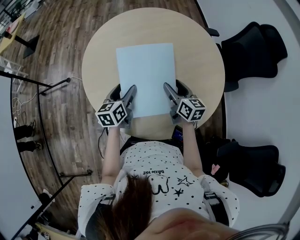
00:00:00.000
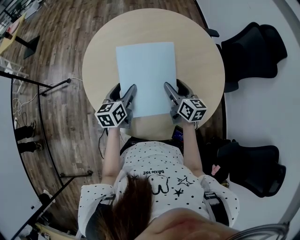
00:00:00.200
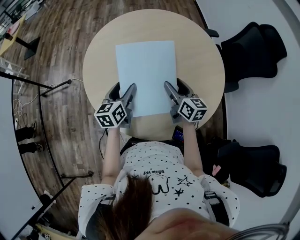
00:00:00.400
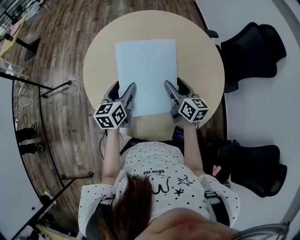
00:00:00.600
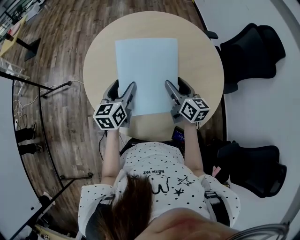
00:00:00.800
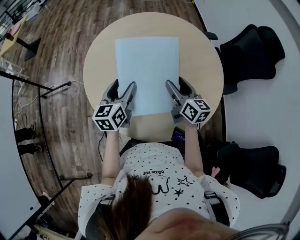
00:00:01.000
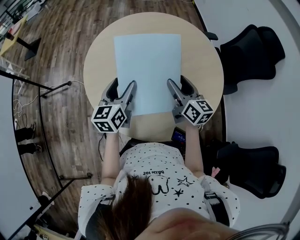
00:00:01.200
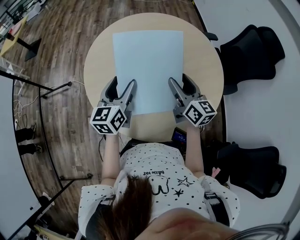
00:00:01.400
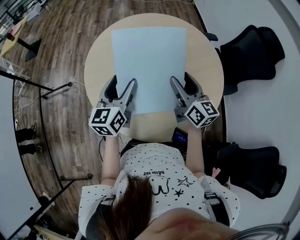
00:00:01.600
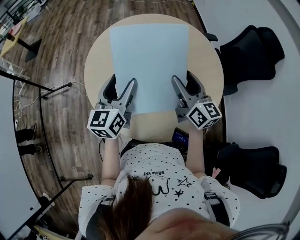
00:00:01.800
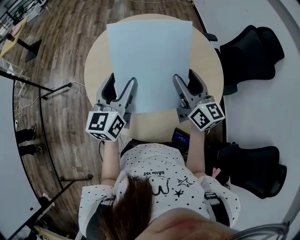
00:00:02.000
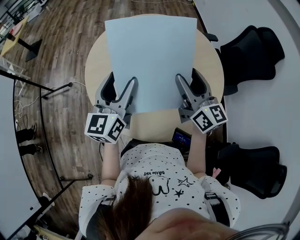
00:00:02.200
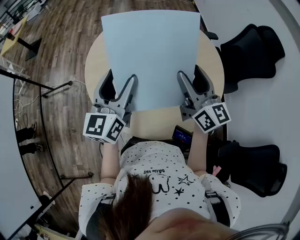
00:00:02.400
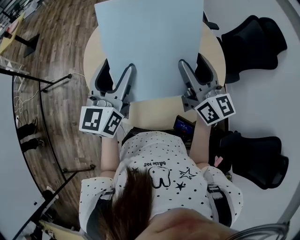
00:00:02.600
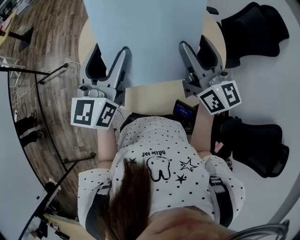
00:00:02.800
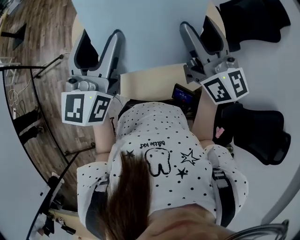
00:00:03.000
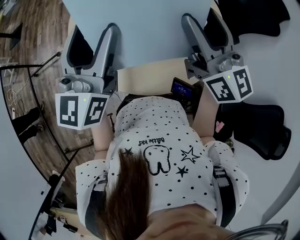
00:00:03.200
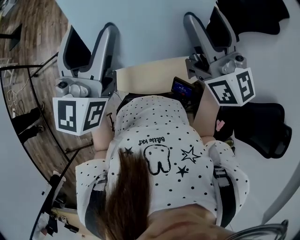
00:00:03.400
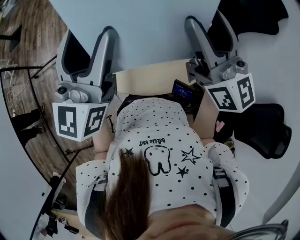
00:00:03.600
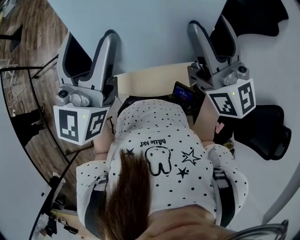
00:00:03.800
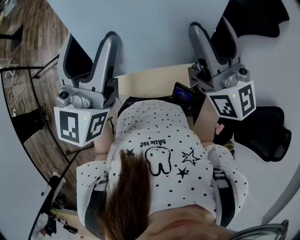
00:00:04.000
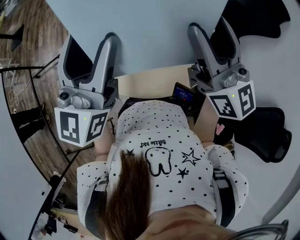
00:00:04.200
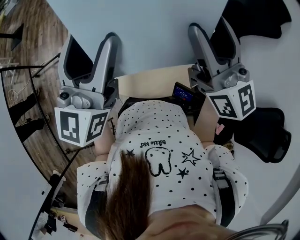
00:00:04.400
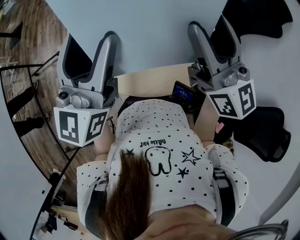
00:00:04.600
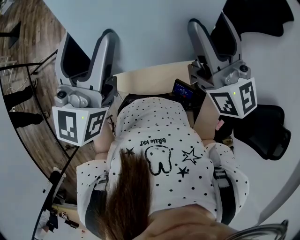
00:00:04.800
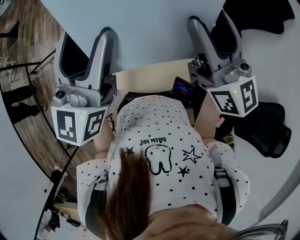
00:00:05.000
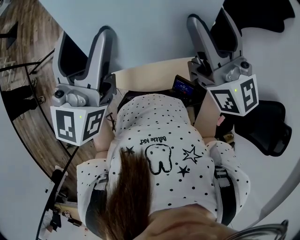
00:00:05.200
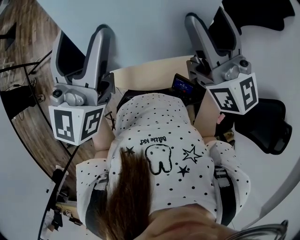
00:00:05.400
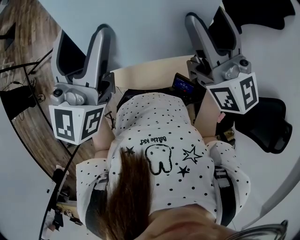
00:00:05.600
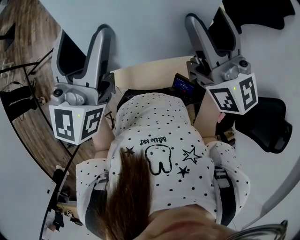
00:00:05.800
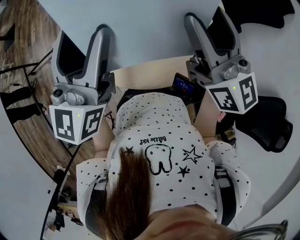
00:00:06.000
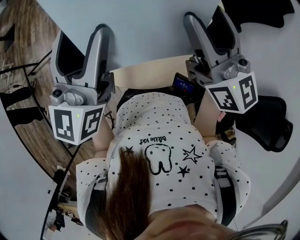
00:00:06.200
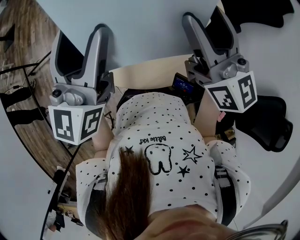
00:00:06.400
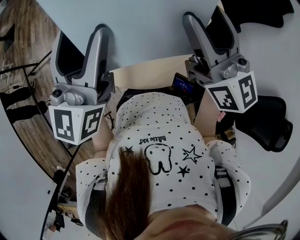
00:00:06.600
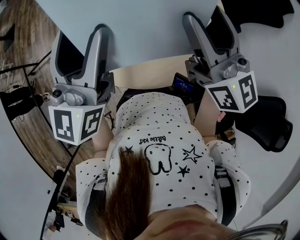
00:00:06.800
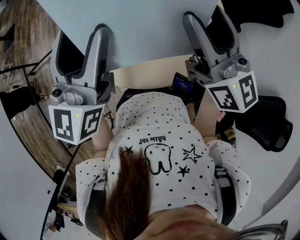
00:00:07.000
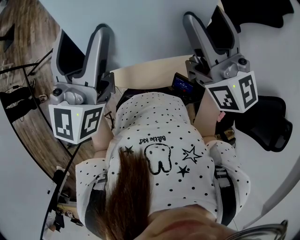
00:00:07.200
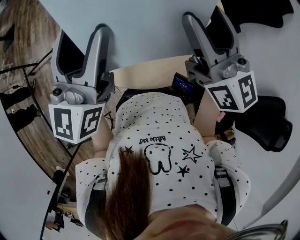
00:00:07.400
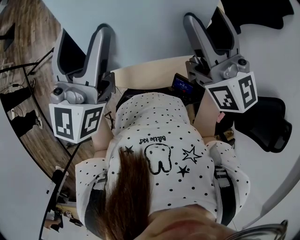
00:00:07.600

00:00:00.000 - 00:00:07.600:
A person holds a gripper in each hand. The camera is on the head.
00:00:00.000 - 00:00:01.600: The grippers both shift upward by some 15 cm. The left gripper changes its angle by some 20 degrees.
00:00:01.600 - 00:00:03.000: Both grippers travel together upward, some 15 cm.
00:00:03.000 - 00:00:06.000: There are only small adjustments of the grippers.
00:00:06.000 - 00:00:07.600: Both grippers stay put.

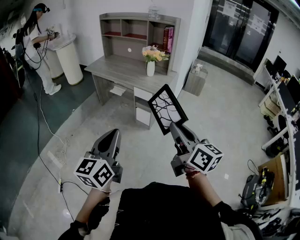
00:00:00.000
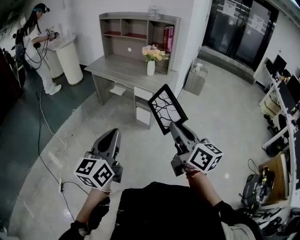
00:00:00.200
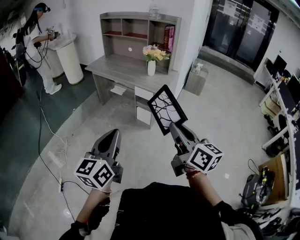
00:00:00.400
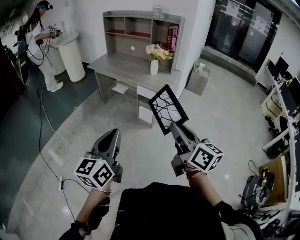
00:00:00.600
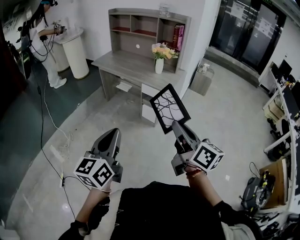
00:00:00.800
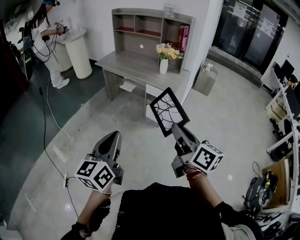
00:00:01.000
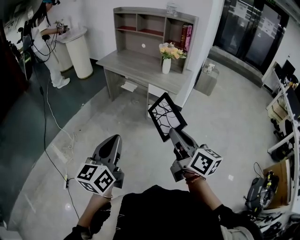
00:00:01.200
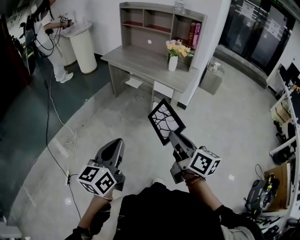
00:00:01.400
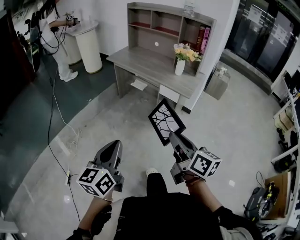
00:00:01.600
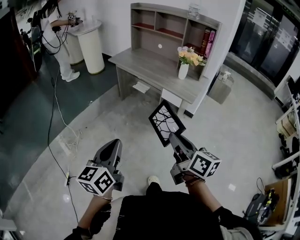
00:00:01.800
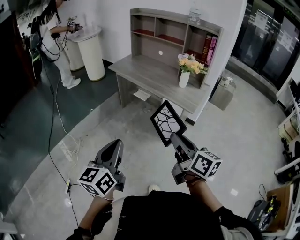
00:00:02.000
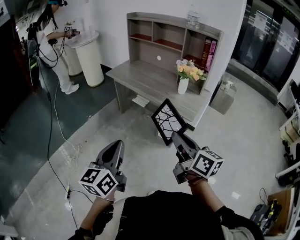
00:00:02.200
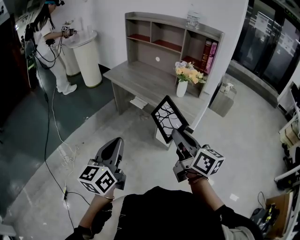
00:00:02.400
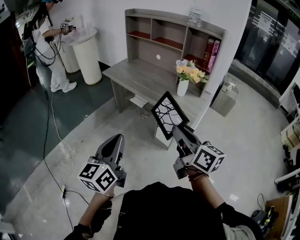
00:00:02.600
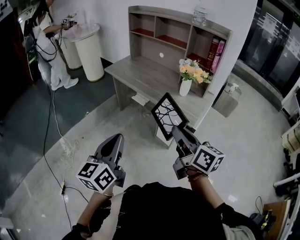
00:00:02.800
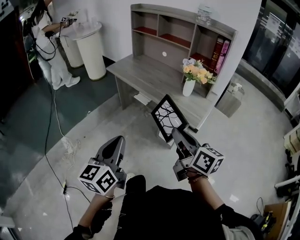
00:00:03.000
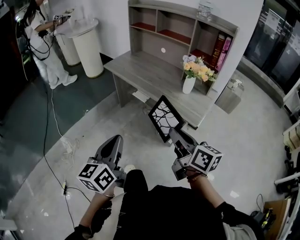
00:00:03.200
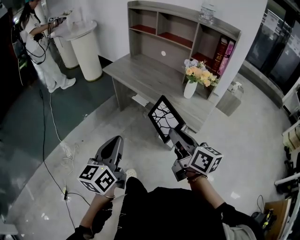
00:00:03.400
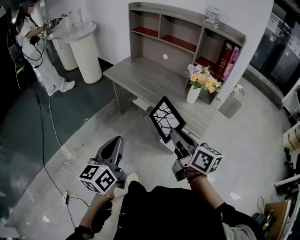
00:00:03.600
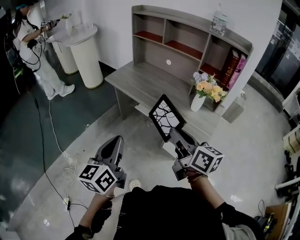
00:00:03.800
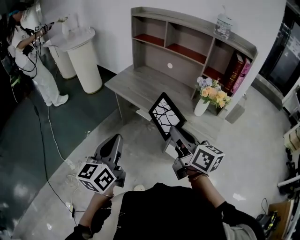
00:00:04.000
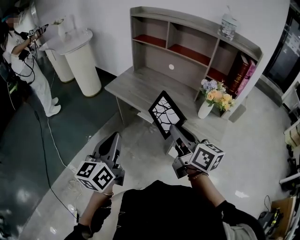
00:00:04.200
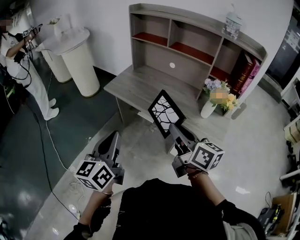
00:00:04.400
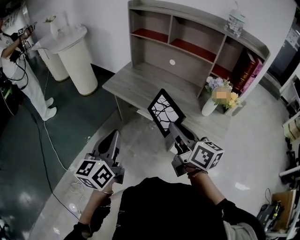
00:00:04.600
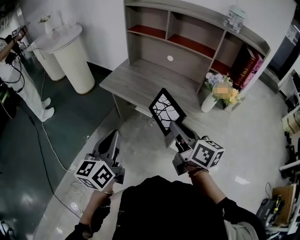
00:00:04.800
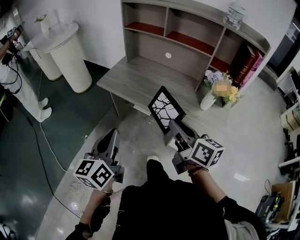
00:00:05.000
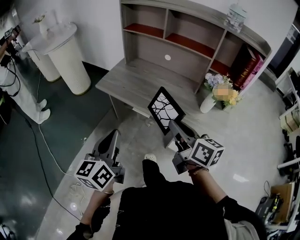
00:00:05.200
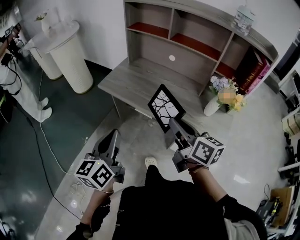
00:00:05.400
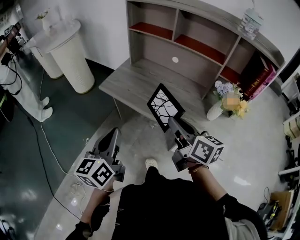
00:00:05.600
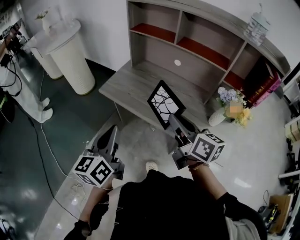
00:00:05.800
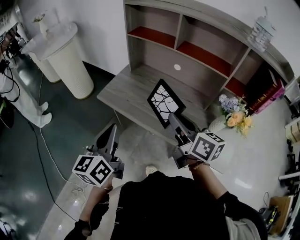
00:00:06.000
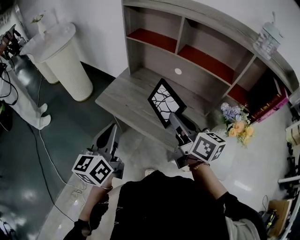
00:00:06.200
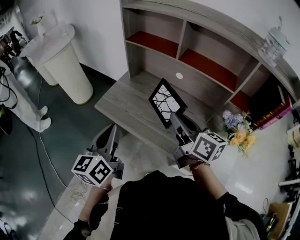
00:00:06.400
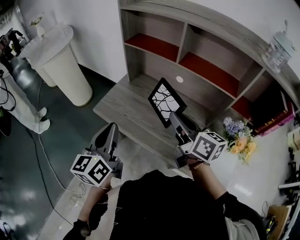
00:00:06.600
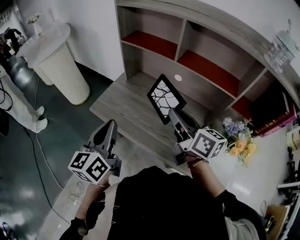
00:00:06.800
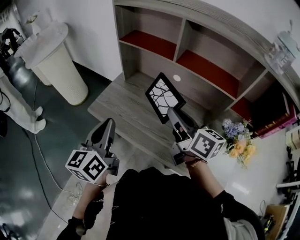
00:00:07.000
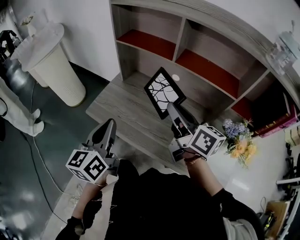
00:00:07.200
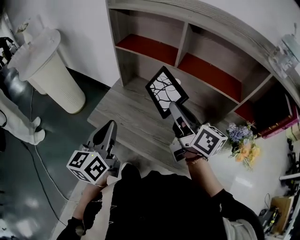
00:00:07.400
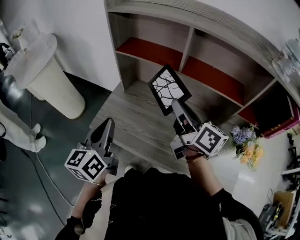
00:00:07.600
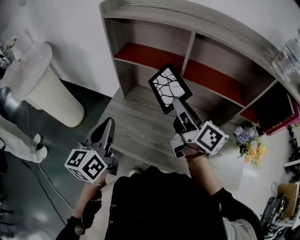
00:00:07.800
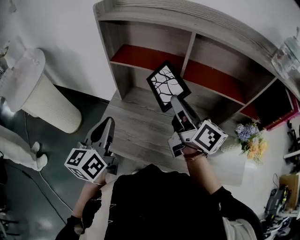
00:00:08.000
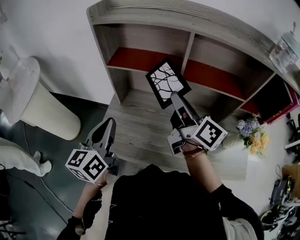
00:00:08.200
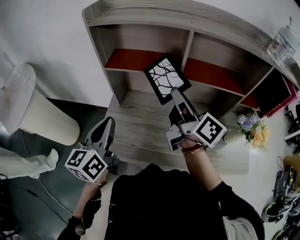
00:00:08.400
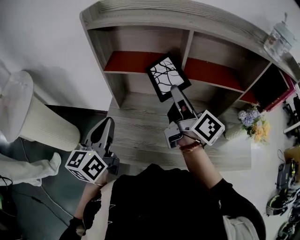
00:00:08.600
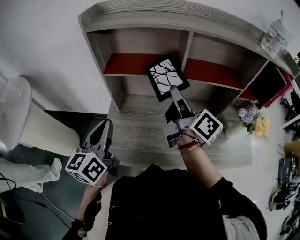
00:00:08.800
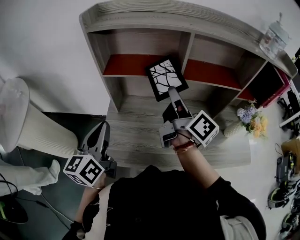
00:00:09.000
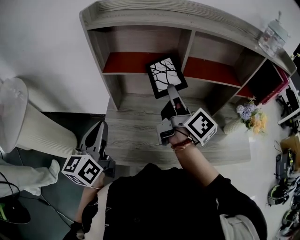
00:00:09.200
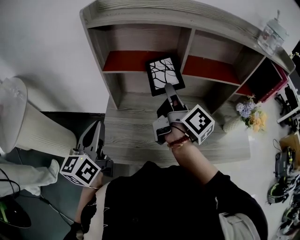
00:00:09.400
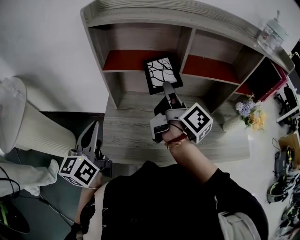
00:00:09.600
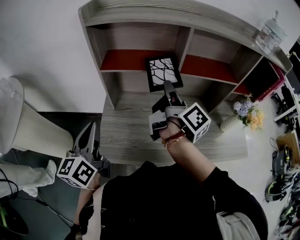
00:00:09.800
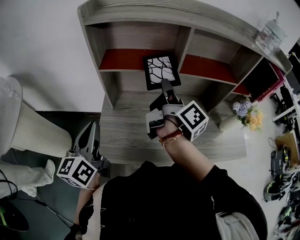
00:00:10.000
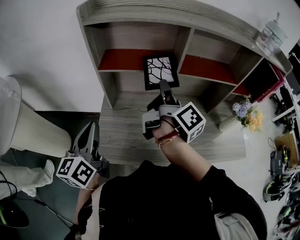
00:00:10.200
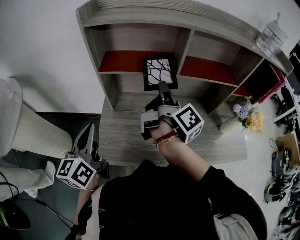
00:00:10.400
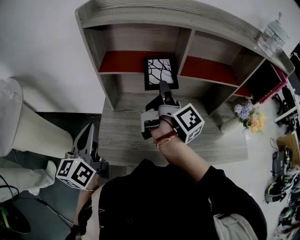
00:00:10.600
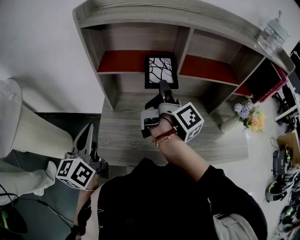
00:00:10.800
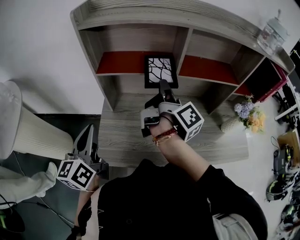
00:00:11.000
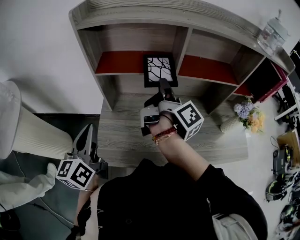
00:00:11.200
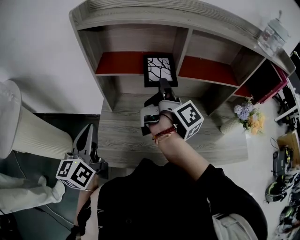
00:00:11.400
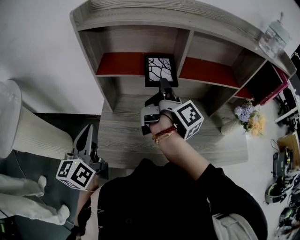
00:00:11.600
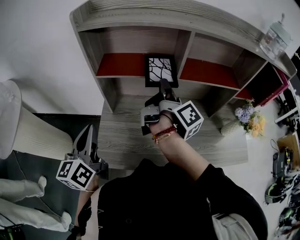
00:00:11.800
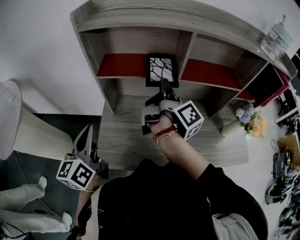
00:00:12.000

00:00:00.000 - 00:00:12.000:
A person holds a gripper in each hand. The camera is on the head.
00:00:00.000 - 00:00:01.600: The left gripper travels to the left and downward by roughly 15 cm, while the right gripper goes approximately 20 cm to the left, downward and forward.
00:00:01.600 - 00:00:03.000: The two grippers go about 25 cm forward.
00:00:03.000 - 00:00:04.400: Both grippers travel together forward and to the left, about 30 cm.
00:00:04.400 - 00:00:06.000: The grippers both shift forward by approximately 20 cm.
00:00:06.000 - 00:00:07.600: Both grippers move forward, some 25 cm.
00:00:07.600 - 00:00:09.000: The left gripper is displaced forward and to the left by roughly 15 cm. The right gripper is displaced forward by approximately 5 cm, and changes its angle by roughly 30 degrees.
00:00:09.000 - 00:00:10.400: The right gripper changes its angle by roughly 20 degrees.
00:00:10.400 - 00:00:12.000: The grippers stay close to where they were, moving slightly.

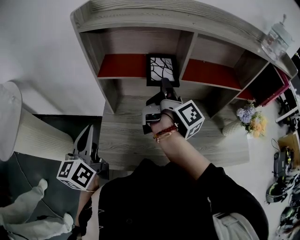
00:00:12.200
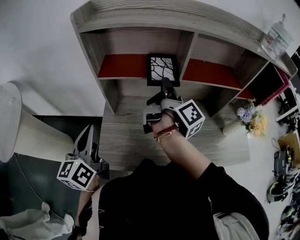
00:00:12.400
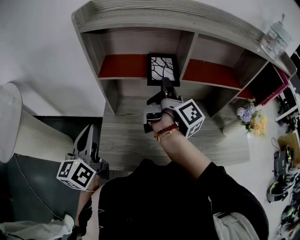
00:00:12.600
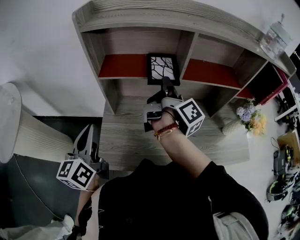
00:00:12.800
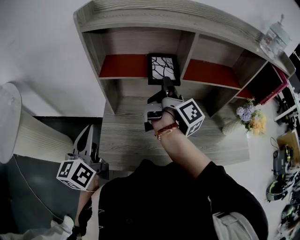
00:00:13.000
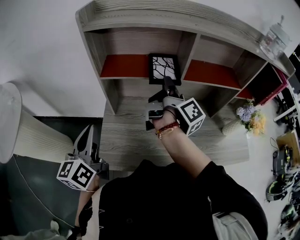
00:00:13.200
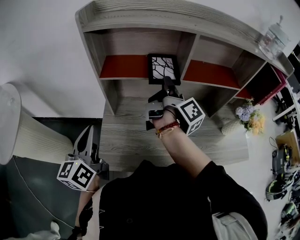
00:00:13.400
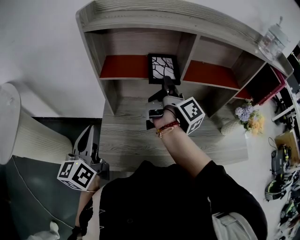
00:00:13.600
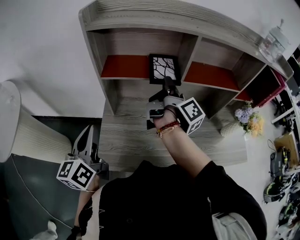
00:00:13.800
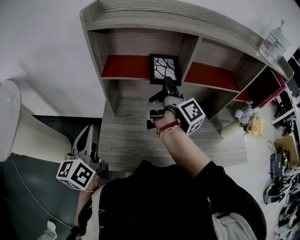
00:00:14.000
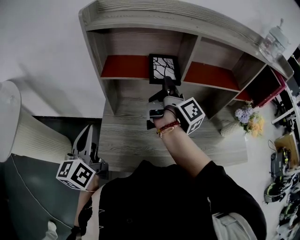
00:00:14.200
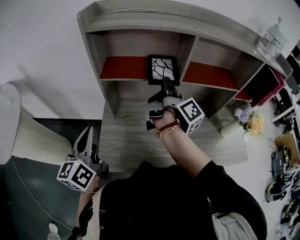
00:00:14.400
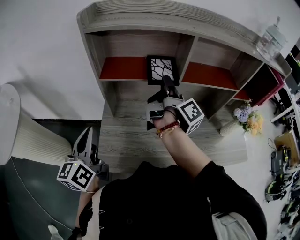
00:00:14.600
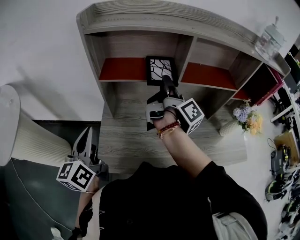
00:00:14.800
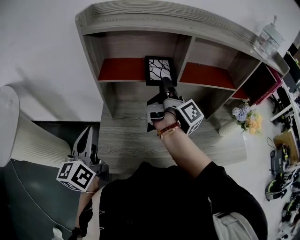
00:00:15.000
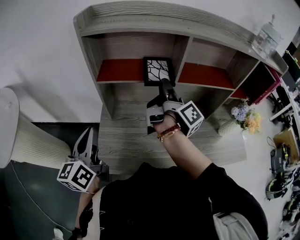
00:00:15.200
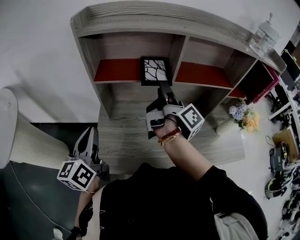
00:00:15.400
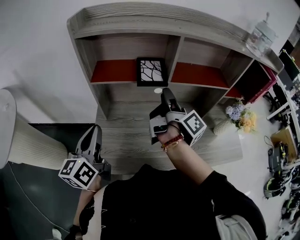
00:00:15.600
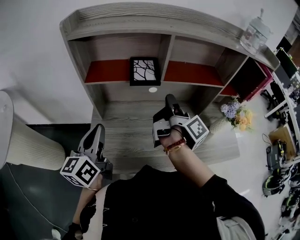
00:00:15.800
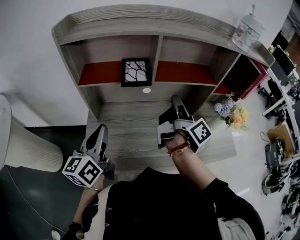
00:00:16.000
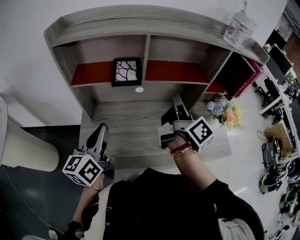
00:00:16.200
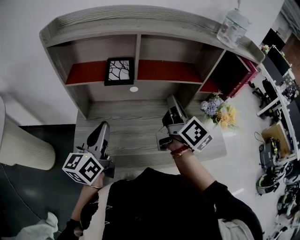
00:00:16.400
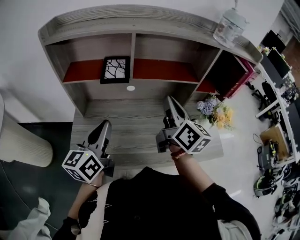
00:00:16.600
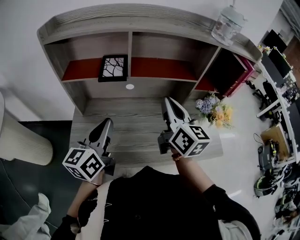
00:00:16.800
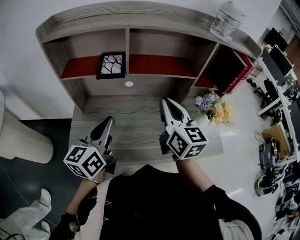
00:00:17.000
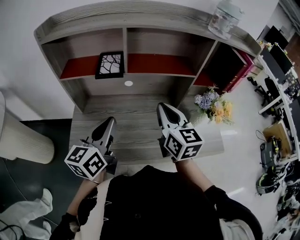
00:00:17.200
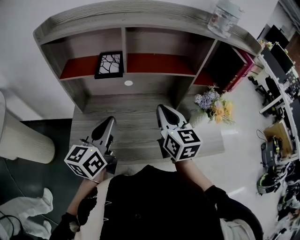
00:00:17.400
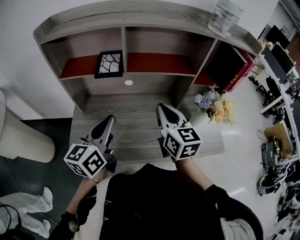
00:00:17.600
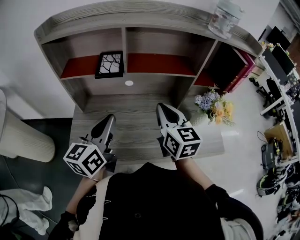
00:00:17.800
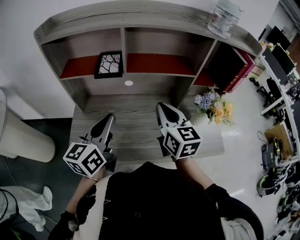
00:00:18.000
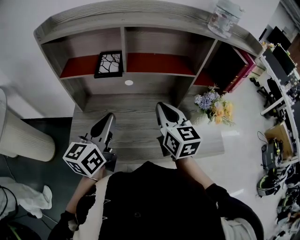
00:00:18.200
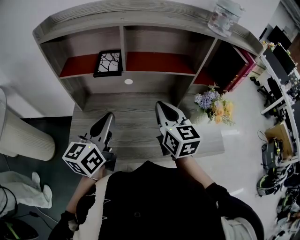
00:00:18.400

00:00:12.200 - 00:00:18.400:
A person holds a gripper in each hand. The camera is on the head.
00:00:12.200 - 00:00:13.800: Both grippers stay put.
00:00:13.800 - 00:00:15.400: The grippers move only a little.
00:00:15.400 - 00:00:16.800: The right gripper moves to the right and backward, roughly 20 cm, twists approximately 70 degrees counterclockwise, seen from behind, and closes its fingers. The left gripper moves to the right, roughly 20 cm.
00:00:16.800 - 00:00:18.400: The grippers move only a little.
